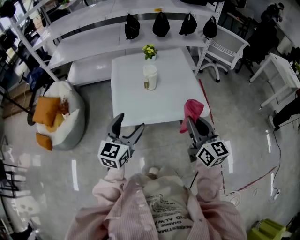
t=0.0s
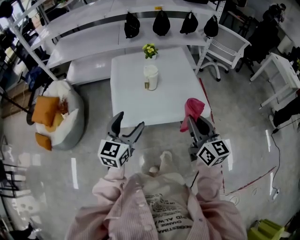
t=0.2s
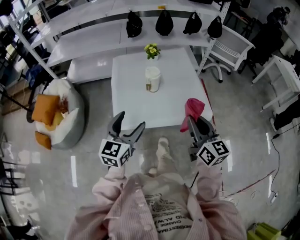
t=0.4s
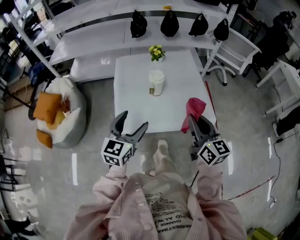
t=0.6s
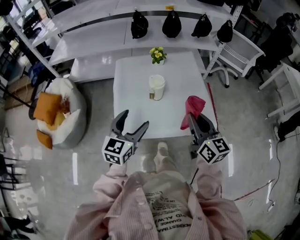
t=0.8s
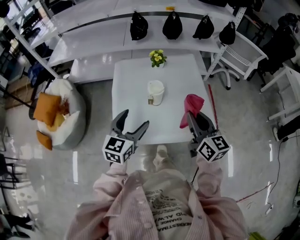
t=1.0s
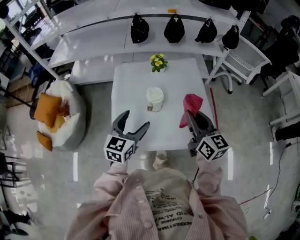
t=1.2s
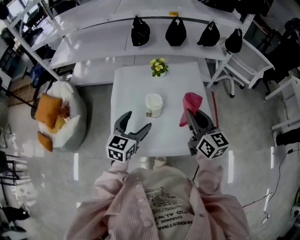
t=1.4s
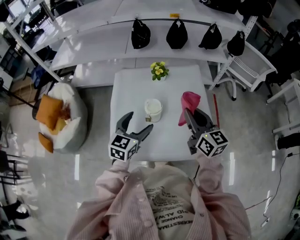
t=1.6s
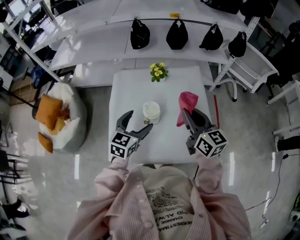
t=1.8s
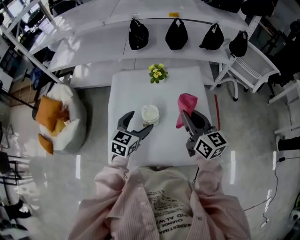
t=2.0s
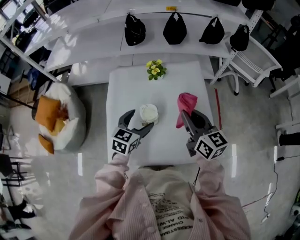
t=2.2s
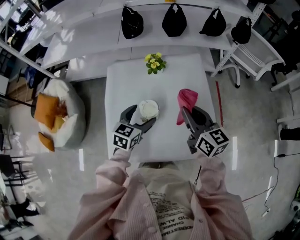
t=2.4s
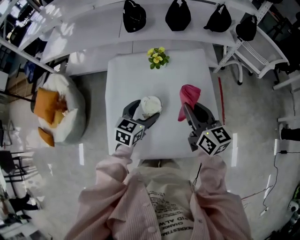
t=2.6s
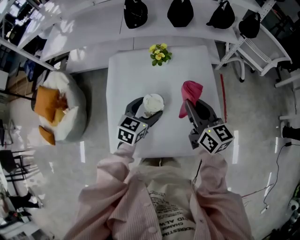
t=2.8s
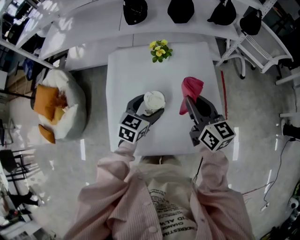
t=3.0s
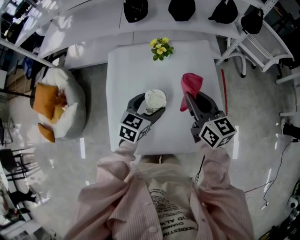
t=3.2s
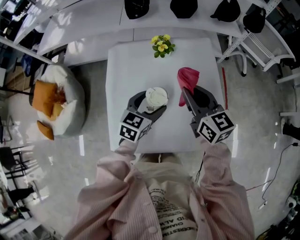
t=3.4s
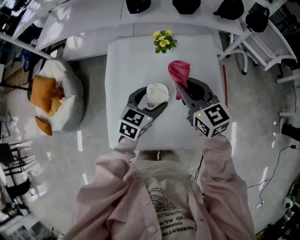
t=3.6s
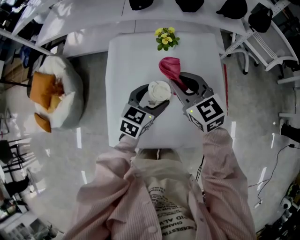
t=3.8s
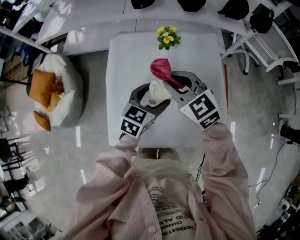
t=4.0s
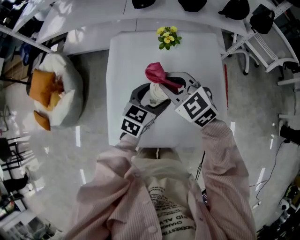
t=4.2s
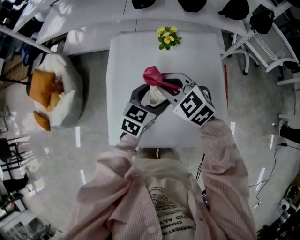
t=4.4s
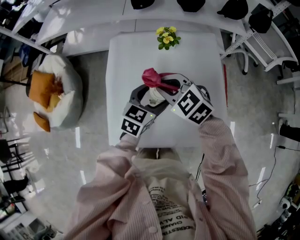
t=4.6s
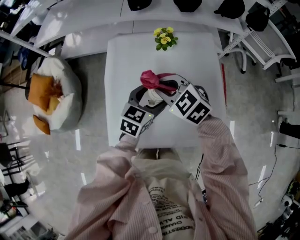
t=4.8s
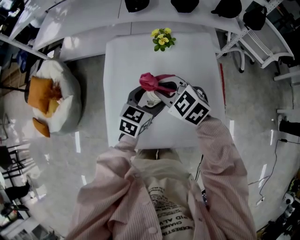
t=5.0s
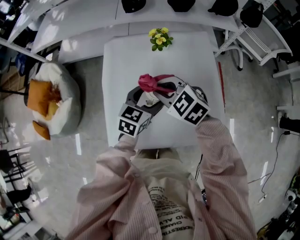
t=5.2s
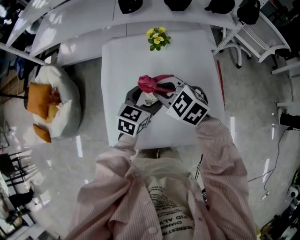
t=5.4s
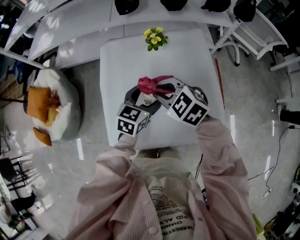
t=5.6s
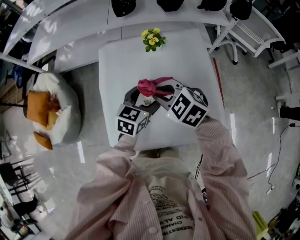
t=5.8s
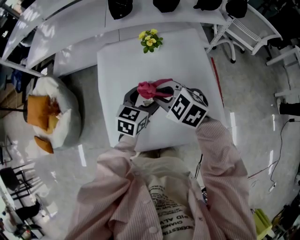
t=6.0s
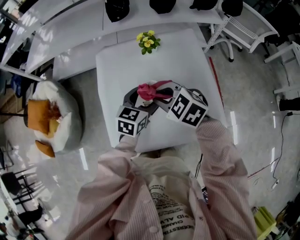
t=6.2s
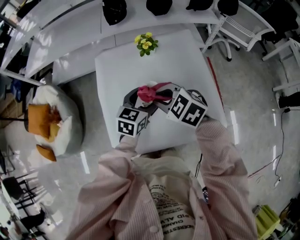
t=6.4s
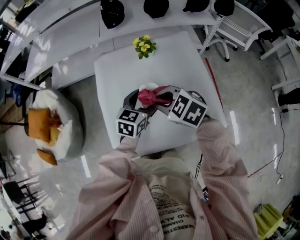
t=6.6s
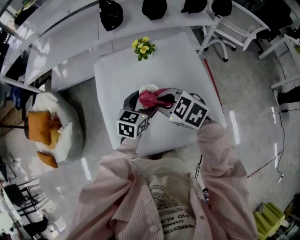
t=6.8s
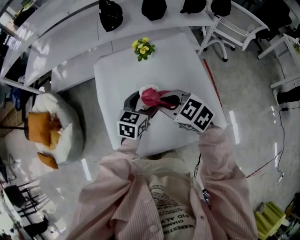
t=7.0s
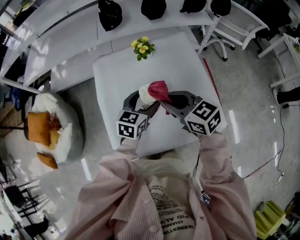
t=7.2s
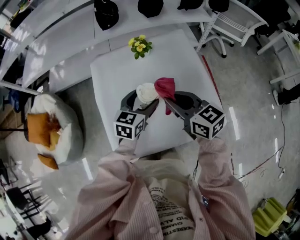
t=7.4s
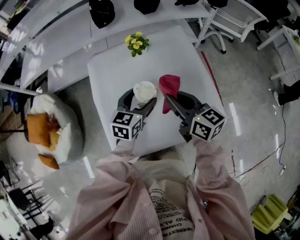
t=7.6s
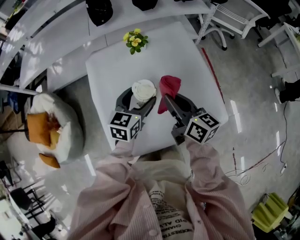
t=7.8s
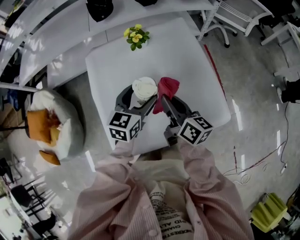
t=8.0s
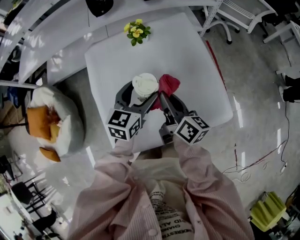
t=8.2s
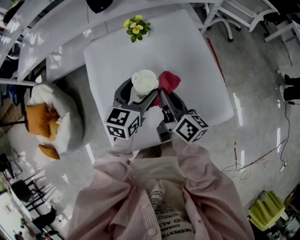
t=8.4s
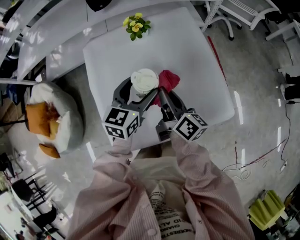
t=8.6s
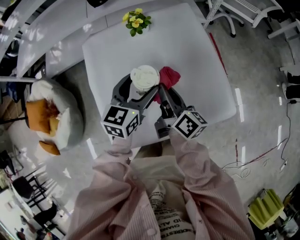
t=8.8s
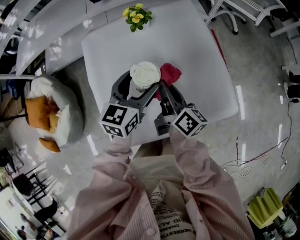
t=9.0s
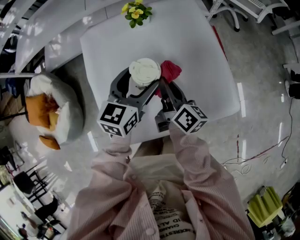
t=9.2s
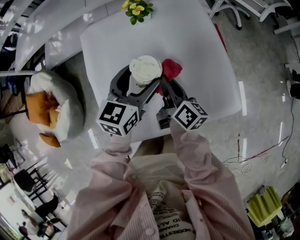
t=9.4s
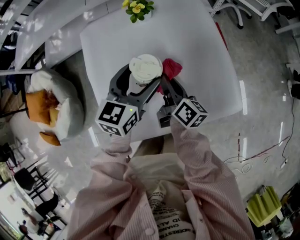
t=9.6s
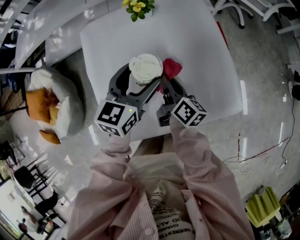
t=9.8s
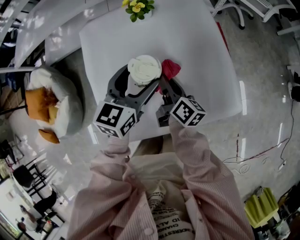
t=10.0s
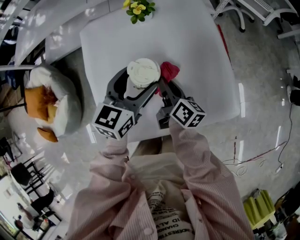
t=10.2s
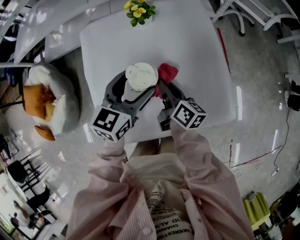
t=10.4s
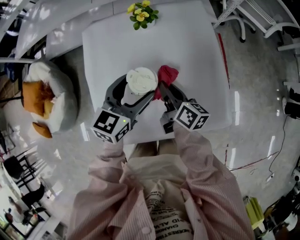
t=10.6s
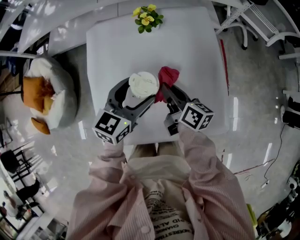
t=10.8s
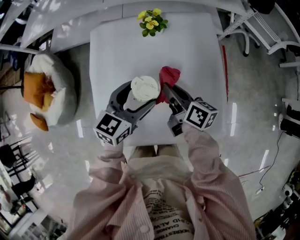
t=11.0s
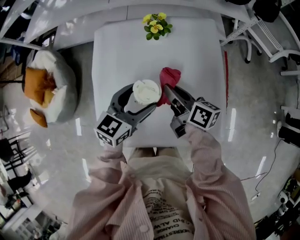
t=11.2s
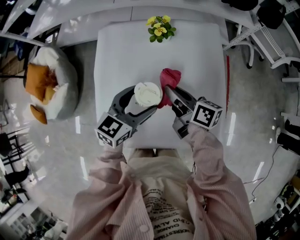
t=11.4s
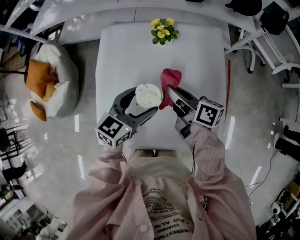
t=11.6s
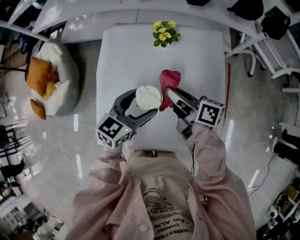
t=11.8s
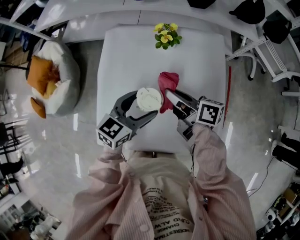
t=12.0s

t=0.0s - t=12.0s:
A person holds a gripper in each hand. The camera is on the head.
t=0.0s - t=1.6s: Both grippers move forward, approximately 30 cm.
t=1.6s - t=3.0s: The left gripper travels downward and forward by approximately 10 cm. Meanwhile the right gripper moves forward and downward, about 10 cm.
t=3.0s - t=4.4s: The right gripper is displaced to the left by approximately 15 cm, and turns by some 60 degrees.
t=4.4s - t=6.0s: The grippers stay close to where they were, moving slightly.
t=6.0s - t=7.6s: The right gripper is displaced to the right by approximately 10 cm, and tips its fingers upward by approximately 30 degrees.
t=7.6s - t=9.0s: The right gripper travels downward by approximately 10 cm, and changes its angle by roughly 40 degrees.
t=9.0s - t=10.4s: The right gripper heads downward, covering about 5 cm.
t=10.4s - t=12.0s: The right gripper goes about 10 cm upward and forward, and swivels roughly 40 degrees.

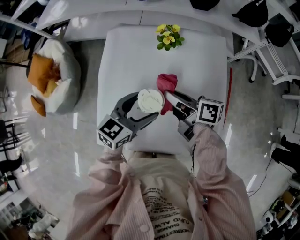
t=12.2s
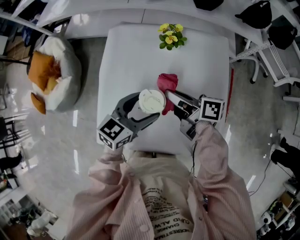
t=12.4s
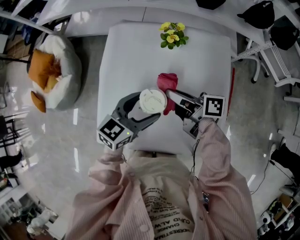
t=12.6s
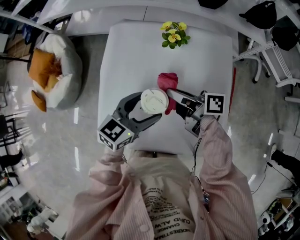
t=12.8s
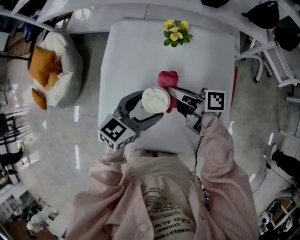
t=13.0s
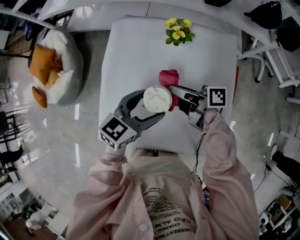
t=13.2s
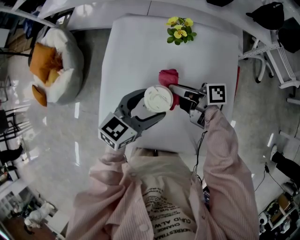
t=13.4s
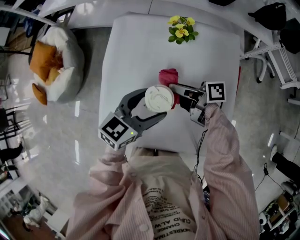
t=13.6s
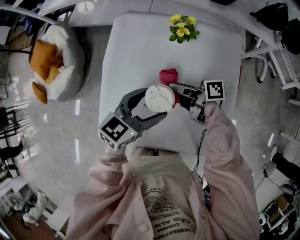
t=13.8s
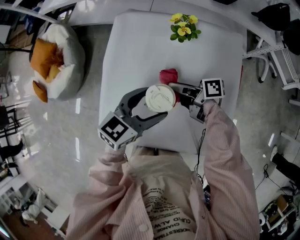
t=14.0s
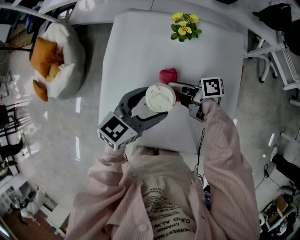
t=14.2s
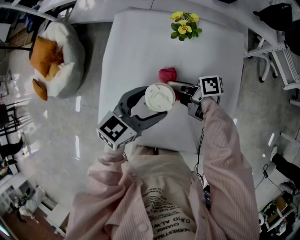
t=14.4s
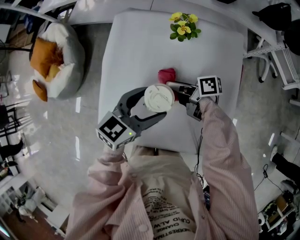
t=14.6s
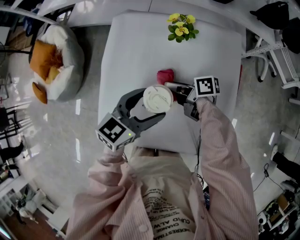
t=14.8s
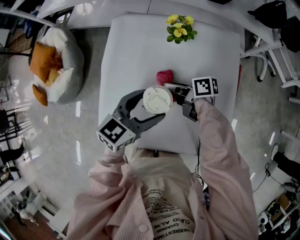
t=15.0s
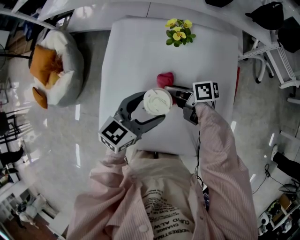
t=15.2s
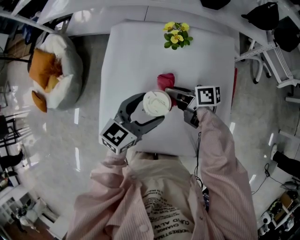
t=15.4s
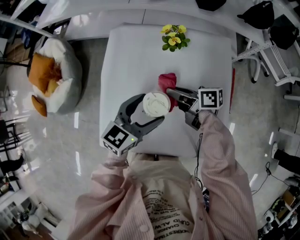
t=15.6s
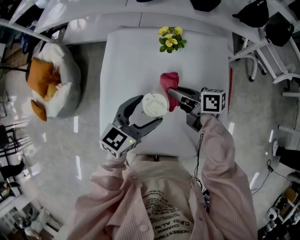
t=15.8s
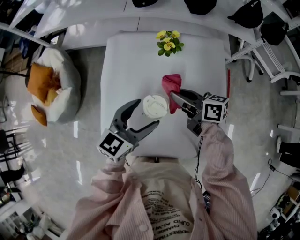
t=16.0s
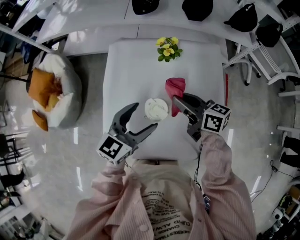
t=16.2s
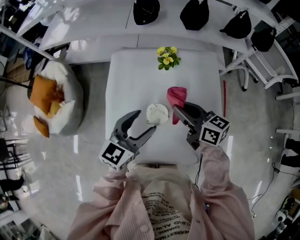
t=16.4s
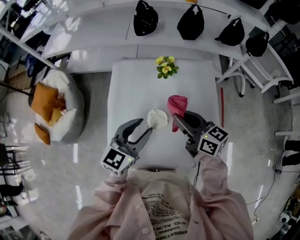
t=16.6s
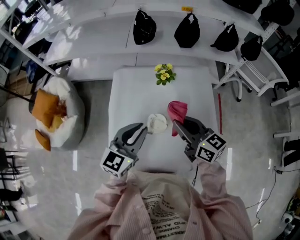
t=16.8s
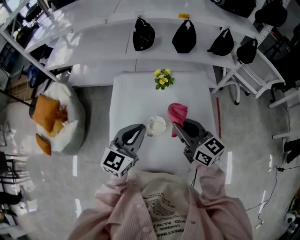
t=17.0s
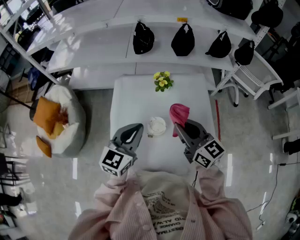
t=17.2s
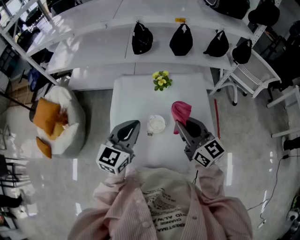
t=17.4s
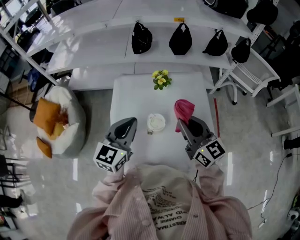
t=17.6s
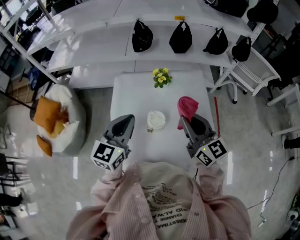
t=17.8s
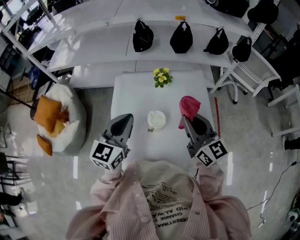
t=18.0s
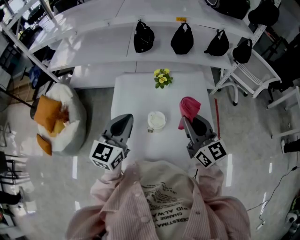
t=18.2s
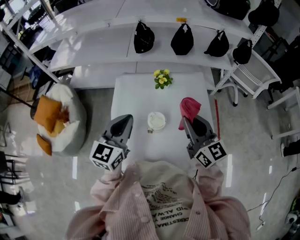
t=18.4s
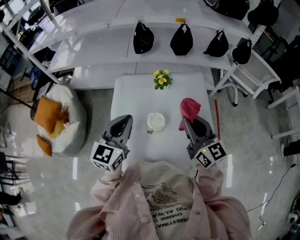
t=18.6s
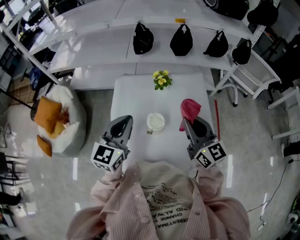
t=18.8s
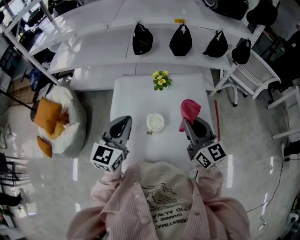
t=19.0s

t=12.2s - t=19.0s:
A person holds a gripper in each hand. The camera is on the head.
t=12.2s - t=13.6s: The right gripper shifts some 5 cm downward, and swivels approximately 20 degrees.
t=13.6s - t=15.0s: The right gripper travels downward by about 5 cm.
t=15.0s - t=16.2s: The left gripper moves upward, some 5 cm; the right gripper is displaced upward by some 15 cm, and rotates approximately 40 degrees.
t=16.2s - t=17.6s: The left gripper is displaced upward and to the left by some 10 cm, and closes its fingers, while the right gripper is displaced upward and backward by about 15 cm, and rotates approximately 40 degrees.
t=17.6s - t=19.0s: The grippers move only a little.

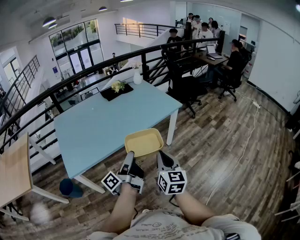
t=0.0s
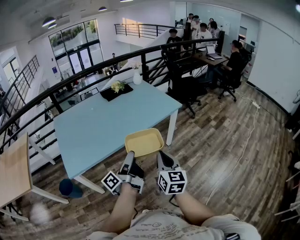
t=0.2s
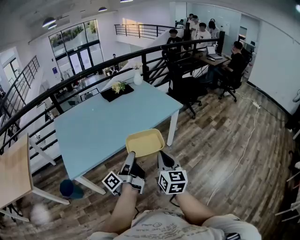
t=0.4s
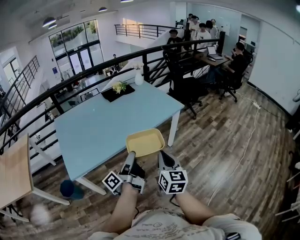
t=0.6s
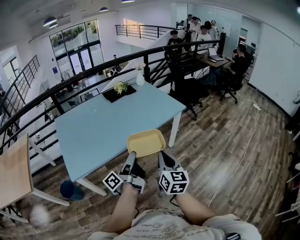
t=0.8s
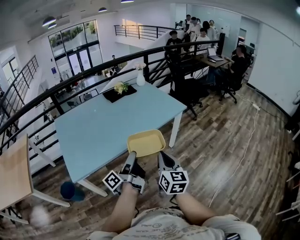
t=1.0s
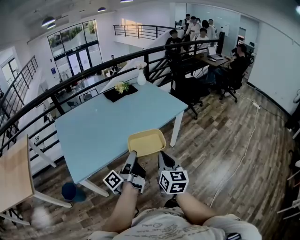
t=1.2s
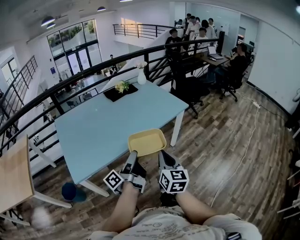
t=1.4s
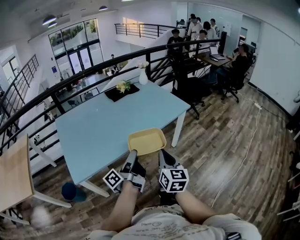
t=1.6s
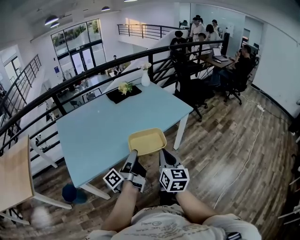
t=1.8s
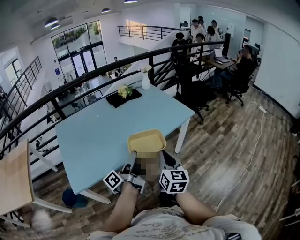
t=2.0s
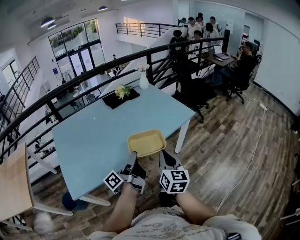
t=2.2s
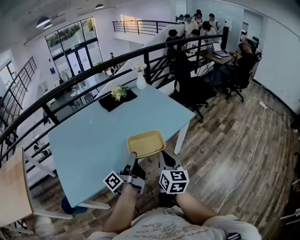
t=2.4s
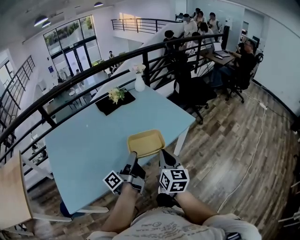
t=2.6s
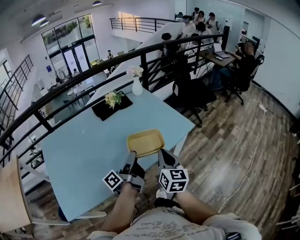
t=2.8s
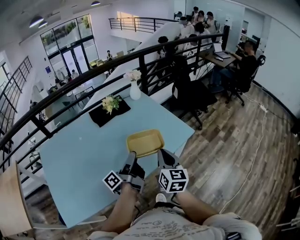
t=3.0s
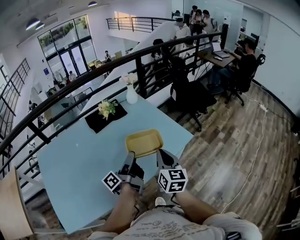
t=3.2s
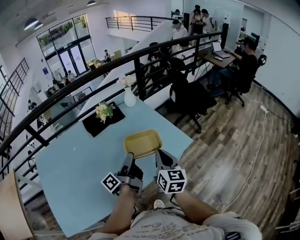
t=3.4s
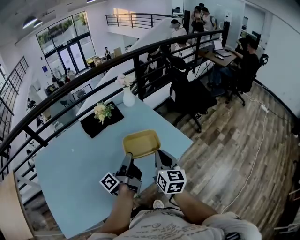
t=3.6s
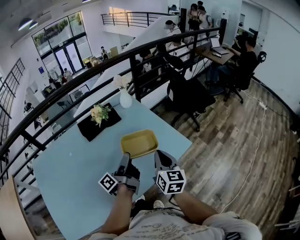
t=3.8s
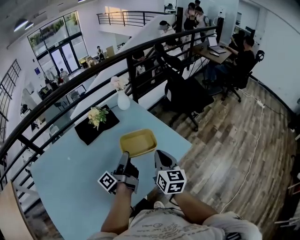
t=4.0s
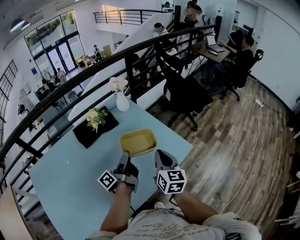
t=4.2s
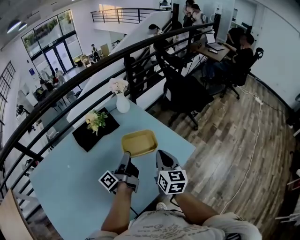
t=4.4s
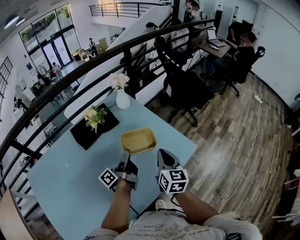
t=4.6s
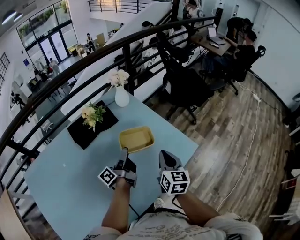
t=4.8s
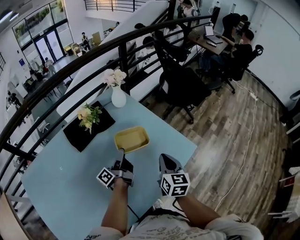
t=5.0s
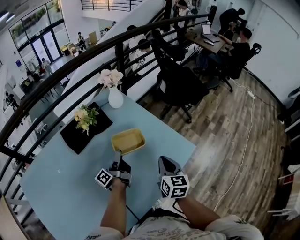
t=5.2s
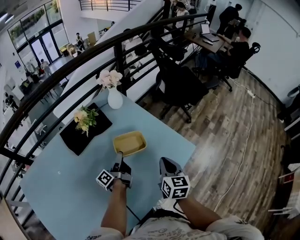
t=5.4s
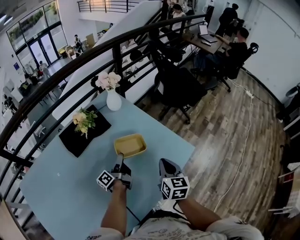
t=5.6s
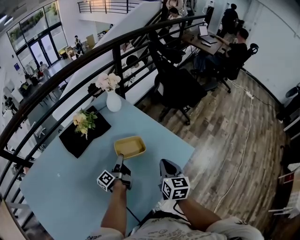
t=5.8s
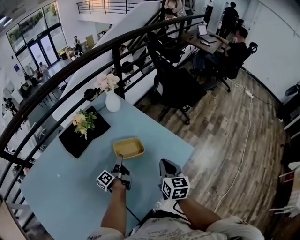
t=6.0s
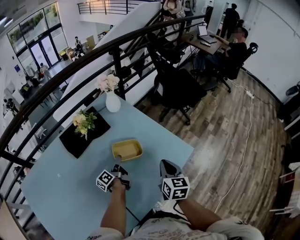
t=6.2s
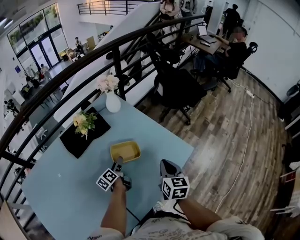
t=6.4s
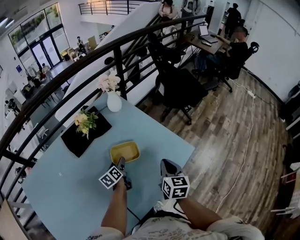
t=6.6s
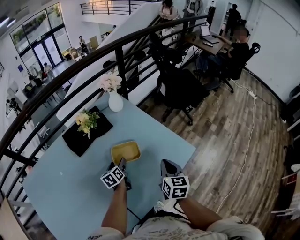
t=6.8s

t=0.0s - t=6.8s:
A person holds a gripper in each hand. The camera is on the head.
t=0.0s - t=1.4s: Both grippers travel together to the left, approximately 5 cm.
t=1.4s - t=2.8s: The grippers both shift forward by roughly 35 cm.
t=2.8s - t=4.0s: Both grippers move forward, about 25 cm.
t=4.0s - t=5.4s: The right gripper heads downward and forward, covering about 10 cm. Meanwhile the left gripper shifts some 20 cm downward, forward and to the left.
t=5.4s - t=6.8s: The left gripper goes about 5 cm downward, and tilts its fingers some 40 degrees downward.
